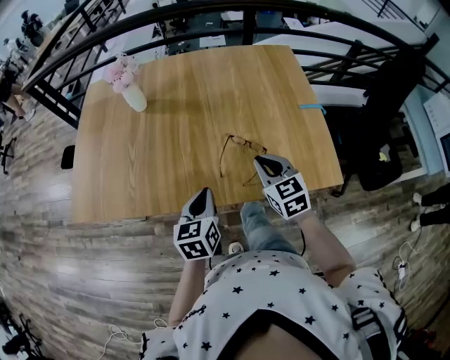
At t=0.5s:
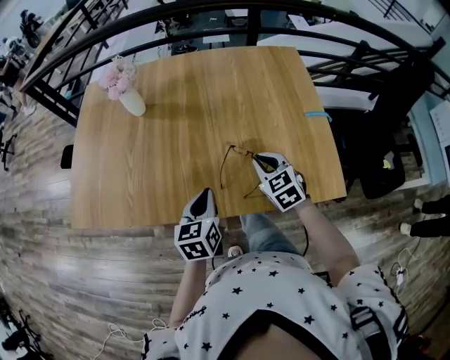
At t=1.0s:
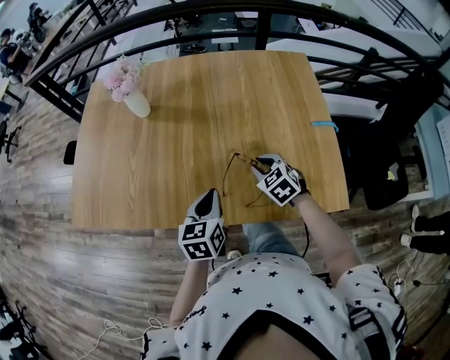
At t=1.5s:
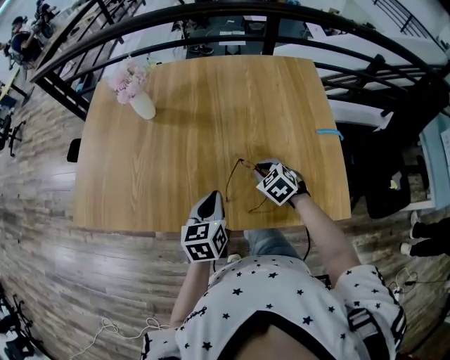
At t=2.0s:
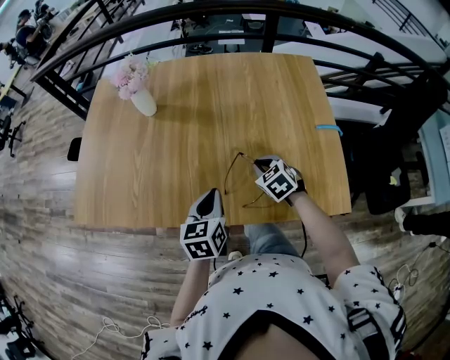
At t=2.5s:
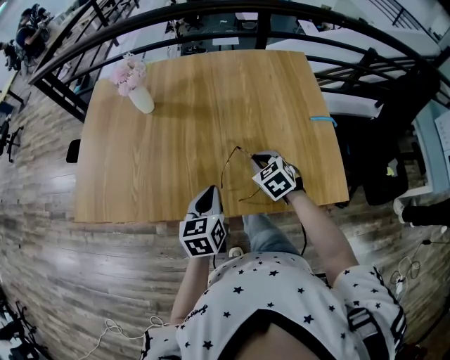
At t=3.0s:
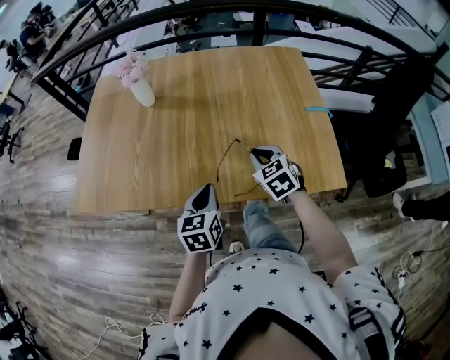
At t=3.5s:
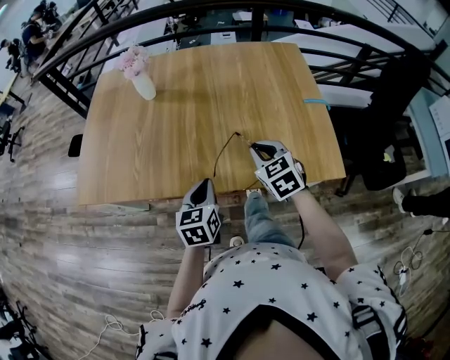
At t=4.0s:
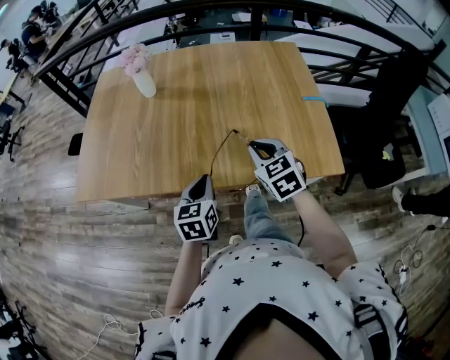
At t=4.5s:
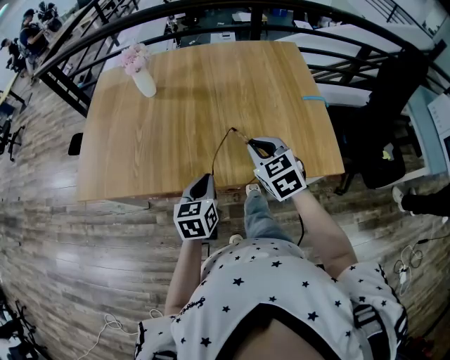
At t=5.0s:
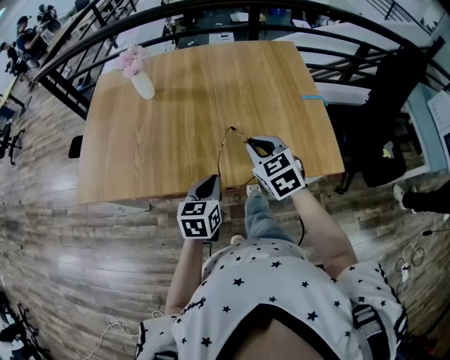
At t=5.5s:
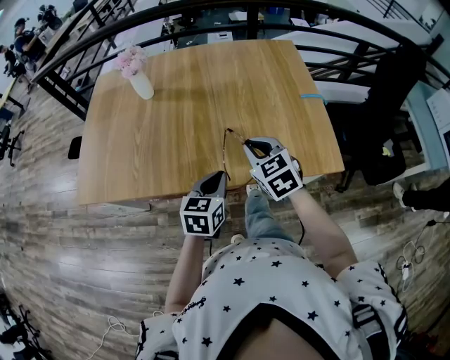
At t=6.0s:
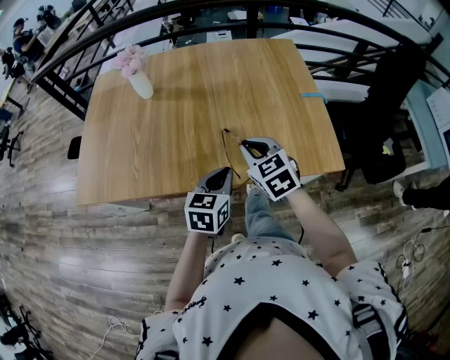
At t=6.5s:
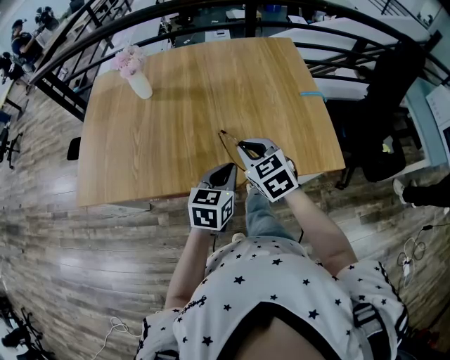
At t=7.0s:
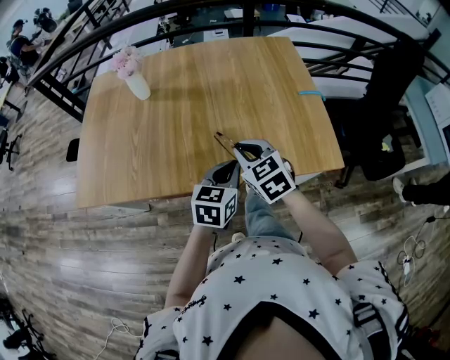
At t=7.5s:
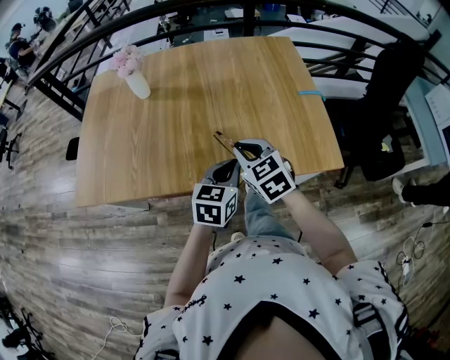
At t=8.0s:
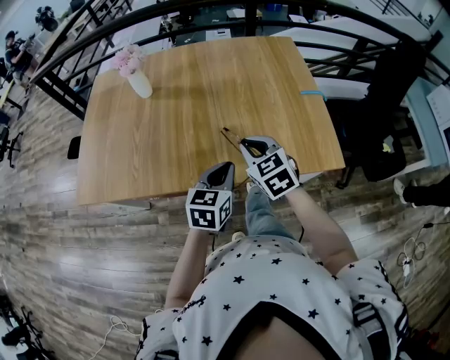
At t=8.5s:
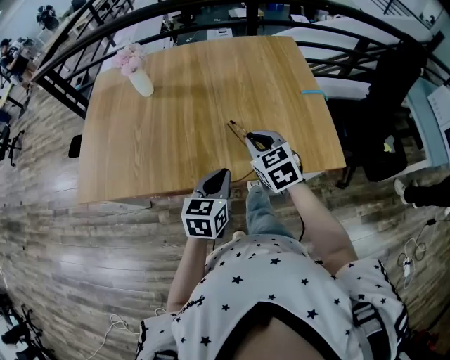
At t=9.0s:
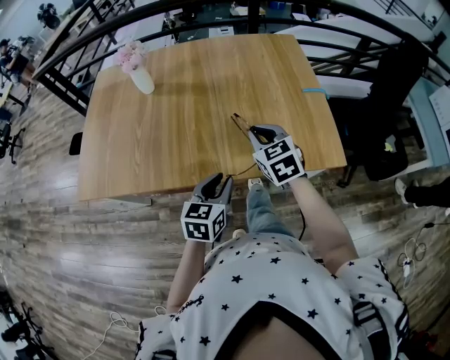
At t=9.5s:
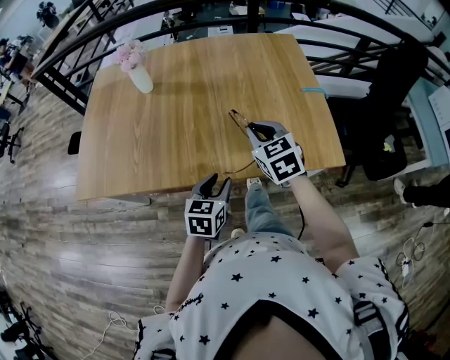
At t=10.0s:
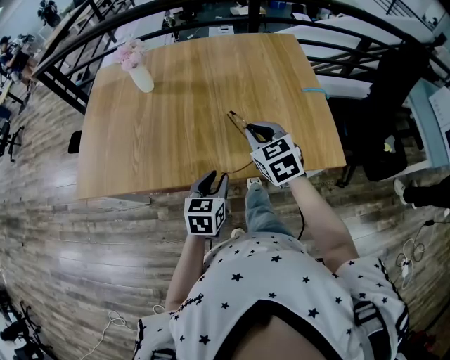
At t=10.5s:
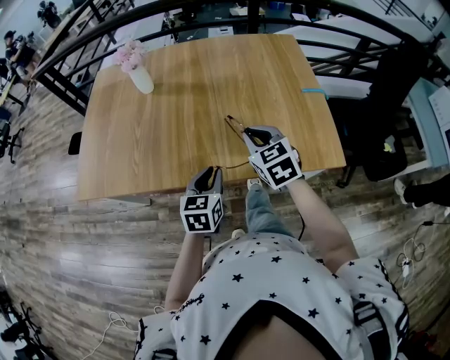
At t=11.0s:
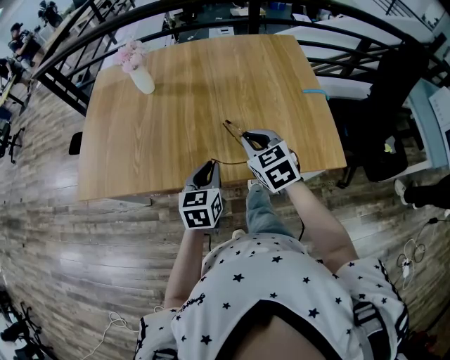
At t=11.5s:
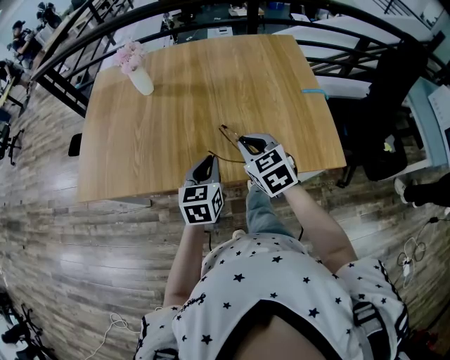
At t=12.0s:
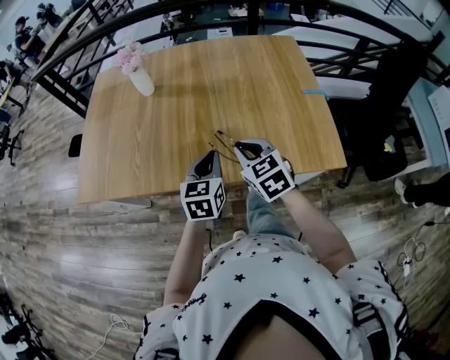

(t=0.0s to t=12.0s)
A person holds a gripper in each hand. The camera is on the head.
t=0.0s - t=2.0s: The right gripper moves downward and forward, approximately 15 cm, and rotates some 30 degrees; the left gripper travels forward by roughly 5 cm.
t=2.0s - t=4.0s: The right gripper heads upward and backward, covering approximately 15 cm; the left gripper is displaced backward by some 10 cm.
t=4.0s - t=6.0s: The left gripper heads to the right, covering some 5 cm.
t=6.0s - t=8.0s: The grippers make only small movements.
t=8.0s - t=10.0s: The left gripper travels downward by about 5 cm, and opens up.
t=10.0s - t=12.0s: The right gripper moves approximately 5 cm, while the left gripper goes about 5 cm forward, and closes.

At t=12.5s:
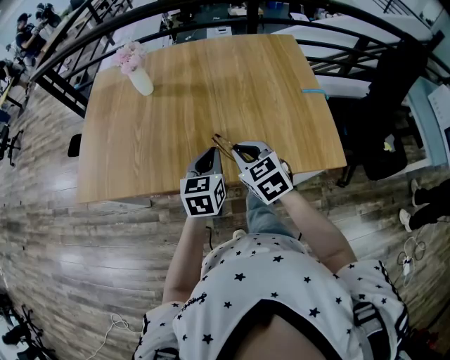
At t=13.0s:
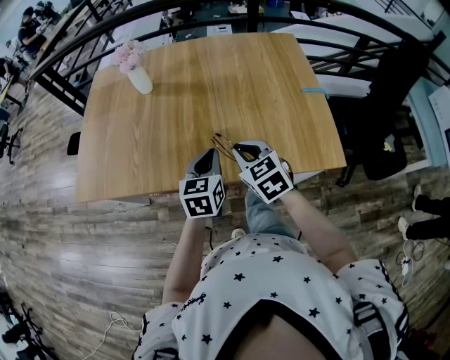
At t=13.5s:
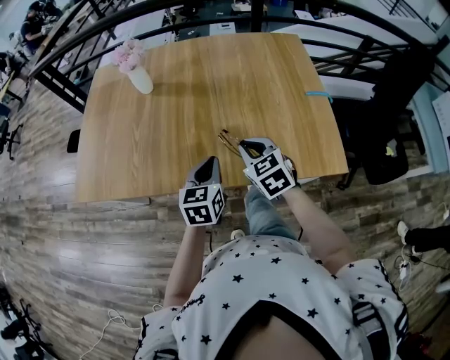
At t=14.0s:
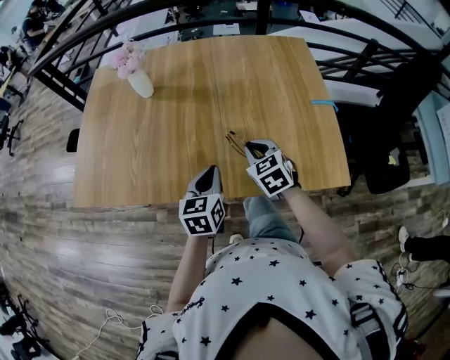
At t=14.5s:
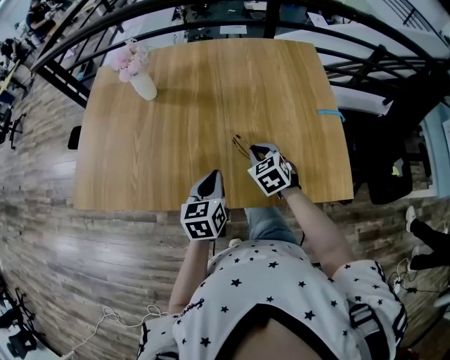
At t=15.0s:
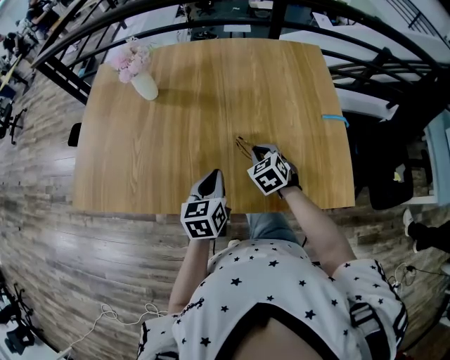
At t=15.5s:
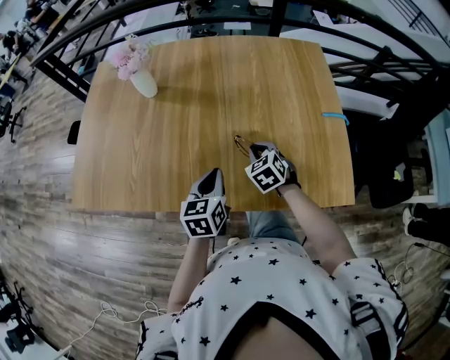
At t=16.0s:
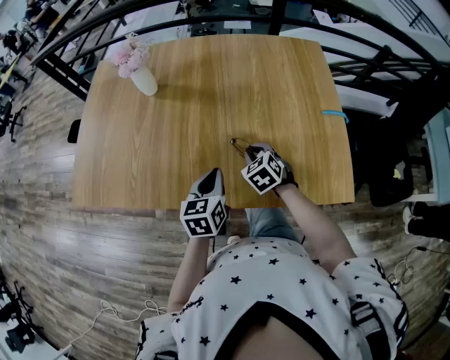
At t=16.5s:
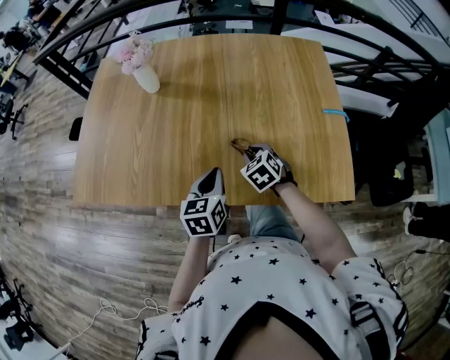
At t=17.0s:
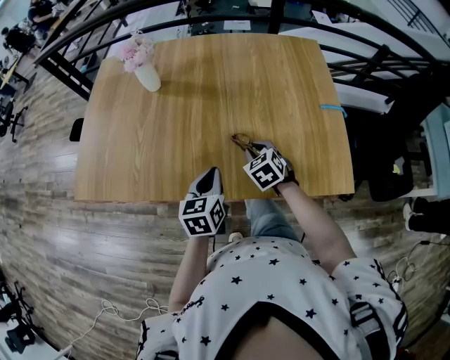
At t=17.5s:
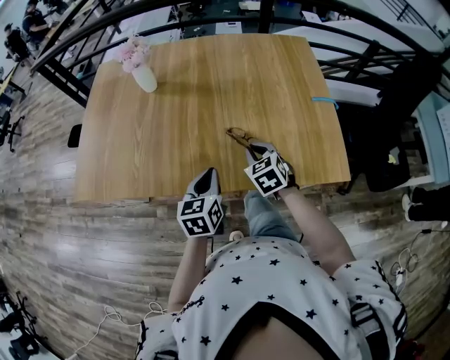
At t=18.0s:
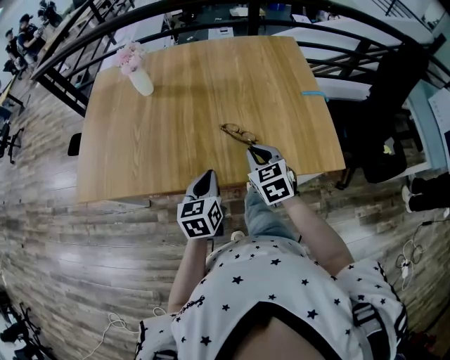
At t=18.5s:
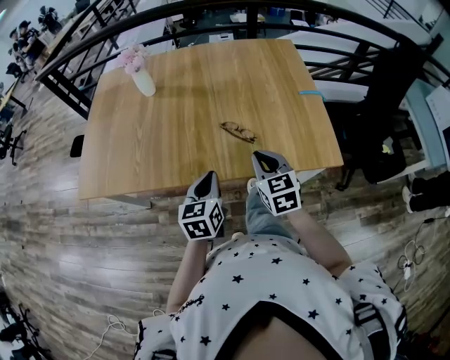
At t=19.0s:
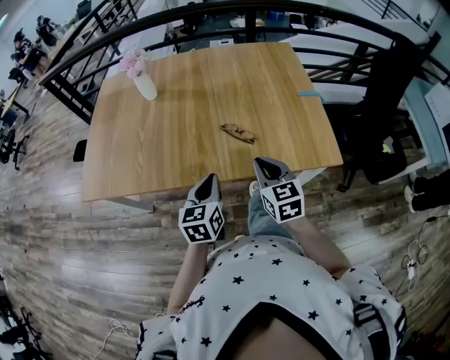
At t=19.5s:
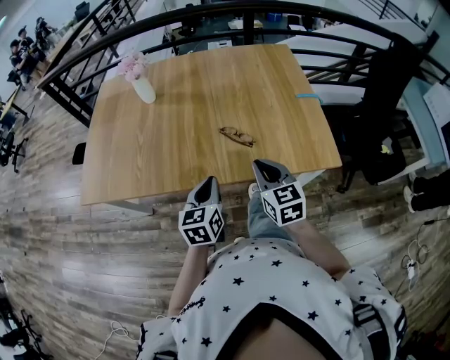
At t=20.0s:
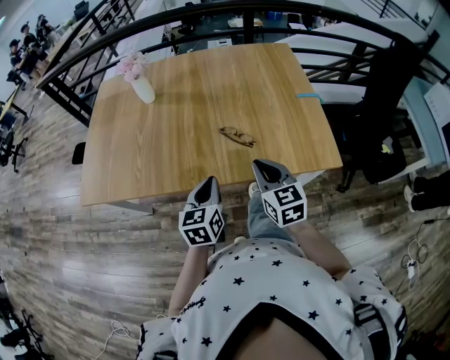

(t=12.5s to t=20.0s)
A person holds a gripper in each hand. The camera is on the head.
t=12.5s - t=14.5s: The left gripper shifts by some 5 cm. The right gripper goes approximately 15 cm forward, downward and to the right.
t=14.5s - t=16.5s: The grippers make only small movements.
t=16.5s - t=18.0s: The right gripper heads upward and backward, covering approximately 15 cm, and changes its angle by some 20 degrees; the left gripper is displaced backward by about 10 cm.
t=18.0s - t=20.0s: The right gripper heads backward, covering approximately 5 cm.

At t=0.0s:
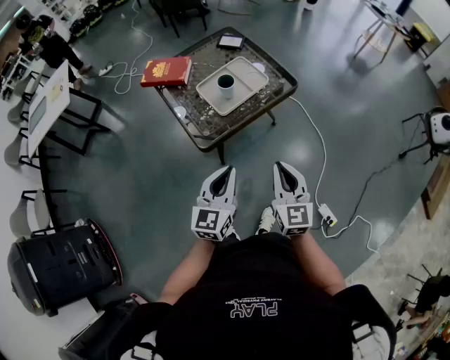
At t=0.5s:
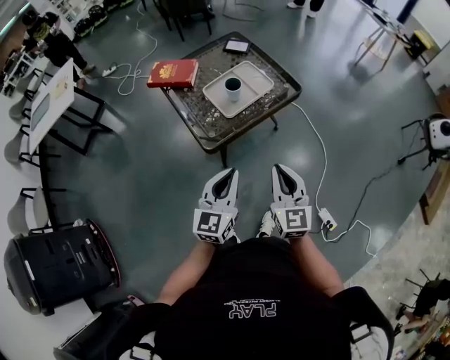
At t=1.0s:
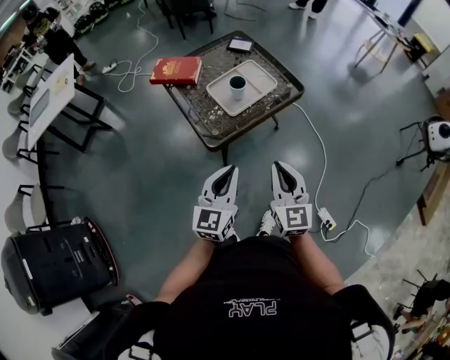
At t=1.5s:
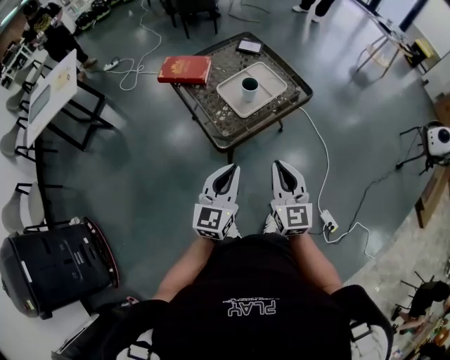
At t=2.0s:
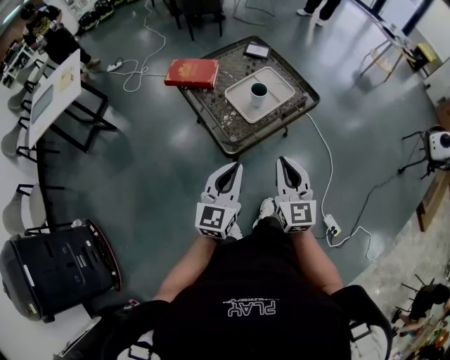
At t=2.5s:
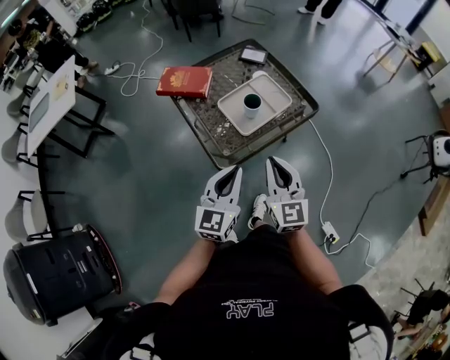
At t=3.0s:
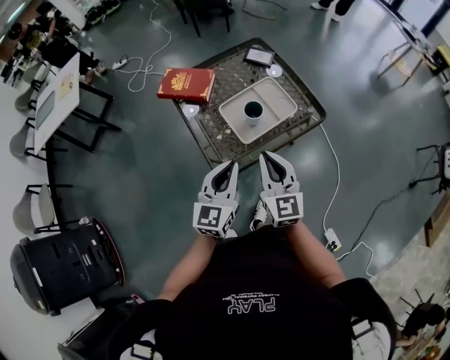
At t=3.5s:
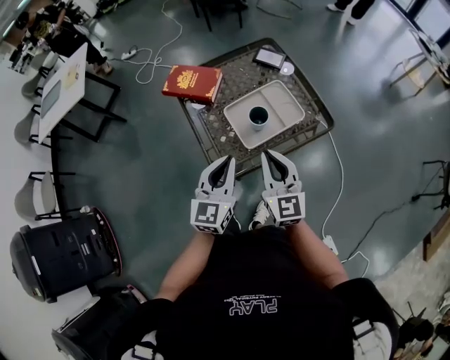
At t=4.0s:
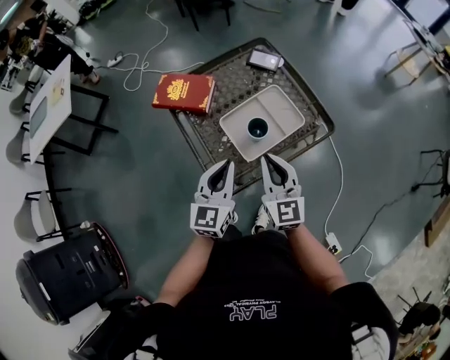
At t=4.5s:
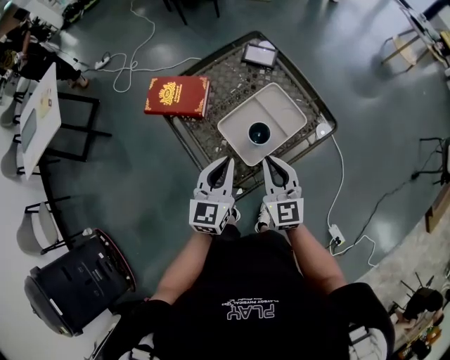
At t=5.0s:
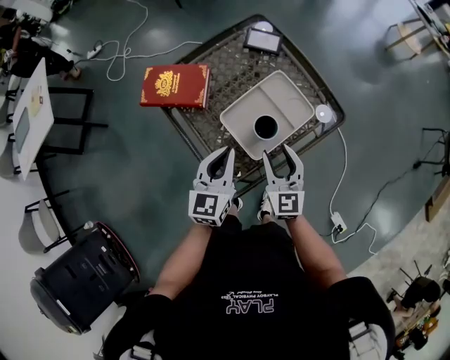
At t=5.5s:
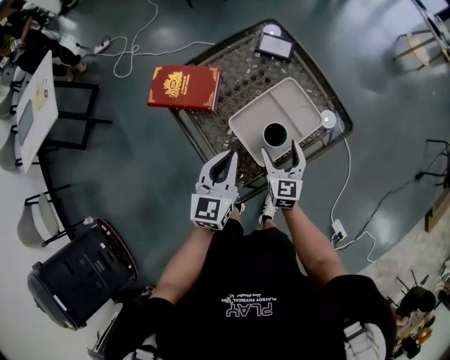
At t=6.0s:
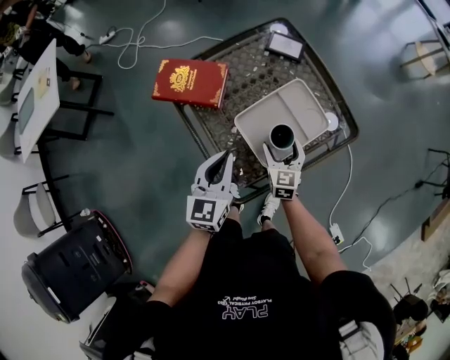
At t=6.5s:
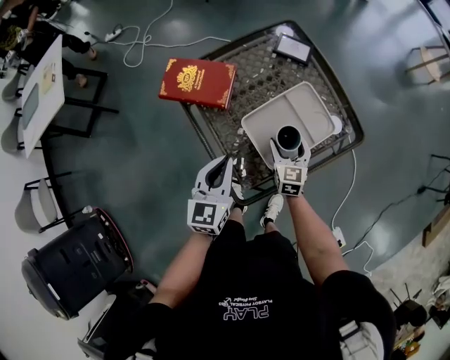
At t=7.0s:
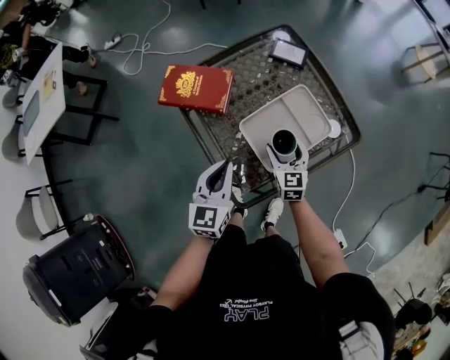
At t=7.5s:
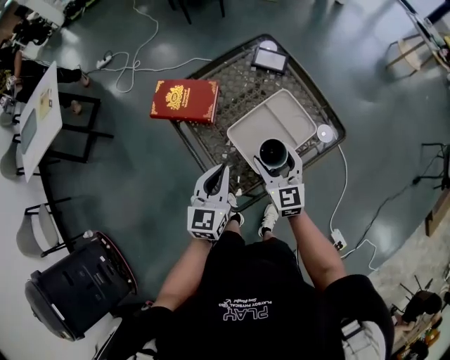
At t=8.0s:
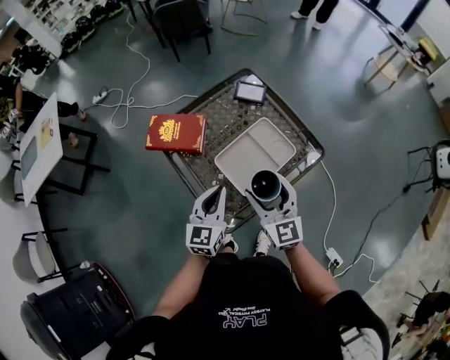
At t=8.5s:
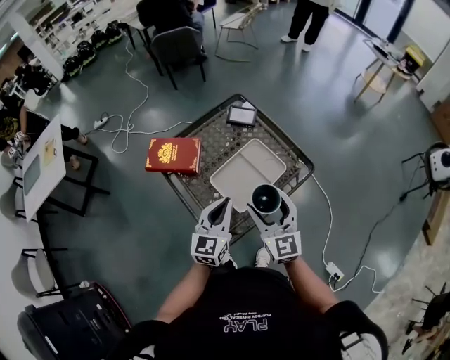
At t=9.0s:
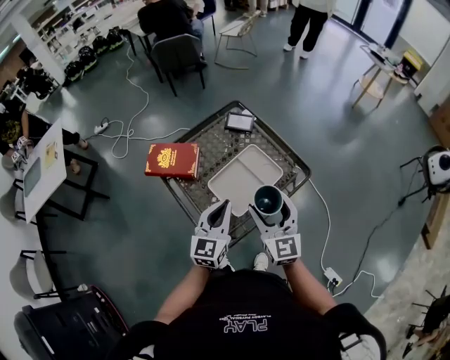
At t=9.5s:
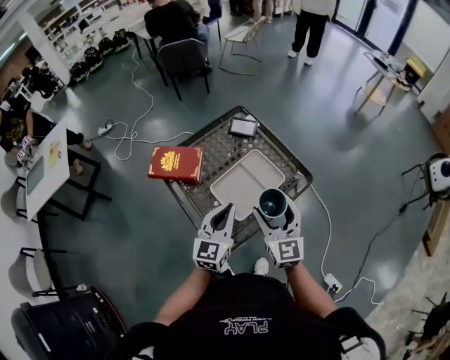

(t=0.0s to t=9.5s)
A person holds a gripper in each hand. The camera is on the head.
t=0.0s - t=2.0s: The two grippers go about 15 cm to the left.
t=2.0s - t=4.0s: Both grippers travel together forward, approximately 25 cm.
t=4.0s - t=5.5s: The right gripper is displaced downward and forward by some 20 cm, turns by approximately 20 degrees, and opens. The left gripper travels forward and downward by some 10 cm.
t=5.5s - t=7.5s: The right gripper shifts approximately 10 cm upward.
t=7.5s - t=9.5s: The right gripper moves upward, to the right and backward, about 20 cm, while the left gripper goes about 10 cm to the right and upward.
